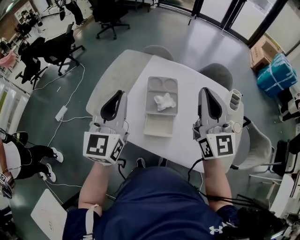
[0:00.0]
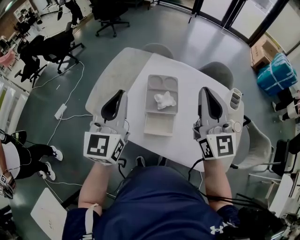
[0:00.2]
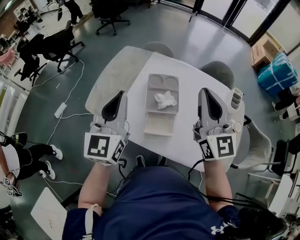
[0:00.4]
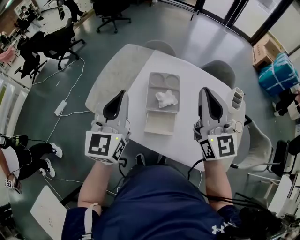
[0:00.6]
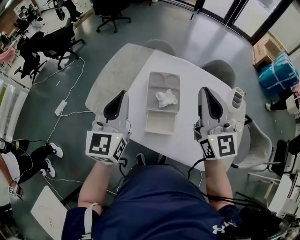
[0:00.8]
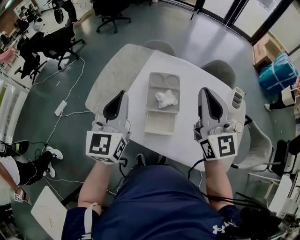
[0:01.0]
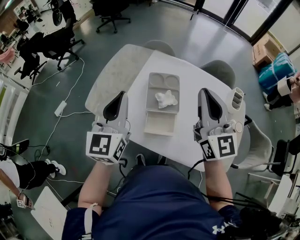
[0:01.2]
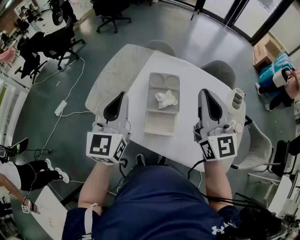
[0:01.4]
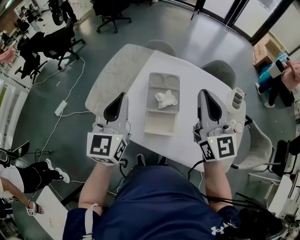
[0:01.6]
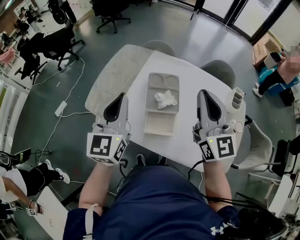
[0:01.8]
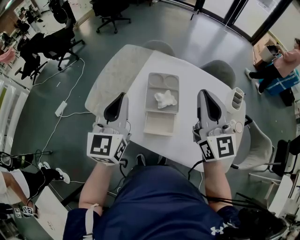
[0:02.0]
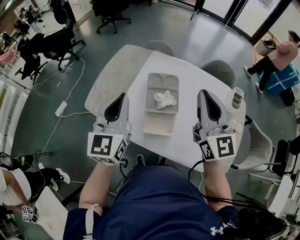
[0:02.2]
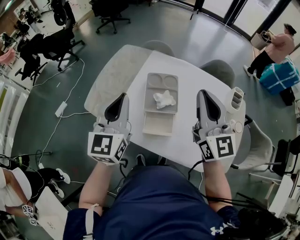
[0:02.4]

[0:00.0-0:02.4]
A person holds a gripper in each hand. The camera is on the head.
0.0 to 2.4 s: The grippers stay close to where they were, moving slightly.

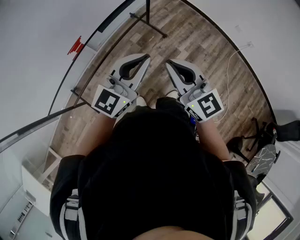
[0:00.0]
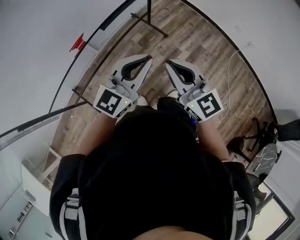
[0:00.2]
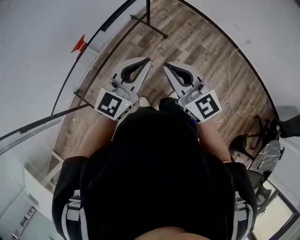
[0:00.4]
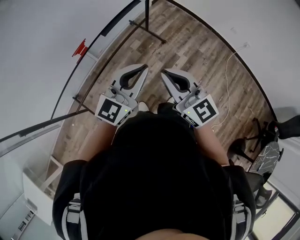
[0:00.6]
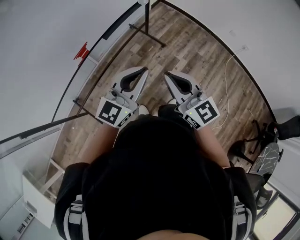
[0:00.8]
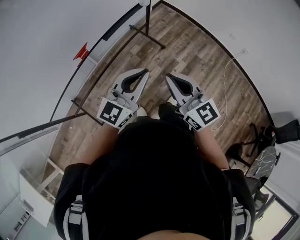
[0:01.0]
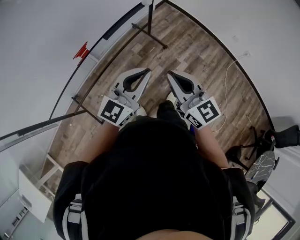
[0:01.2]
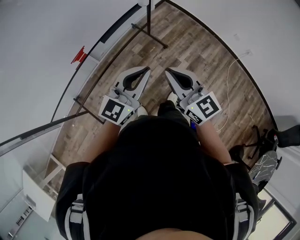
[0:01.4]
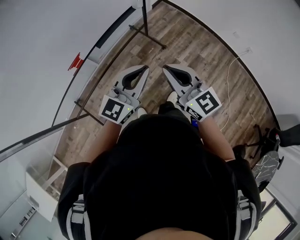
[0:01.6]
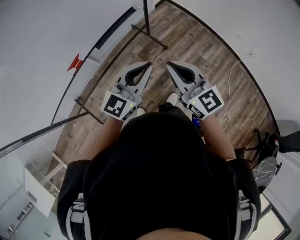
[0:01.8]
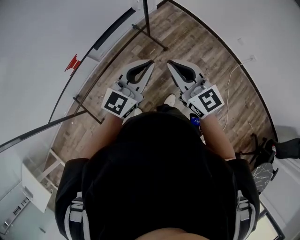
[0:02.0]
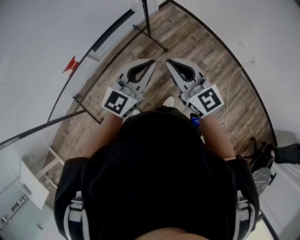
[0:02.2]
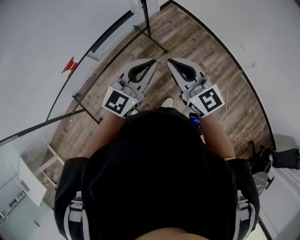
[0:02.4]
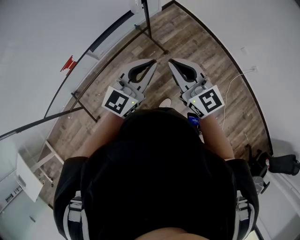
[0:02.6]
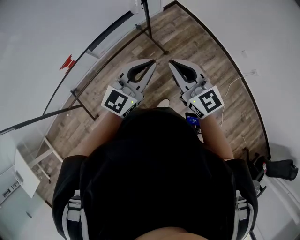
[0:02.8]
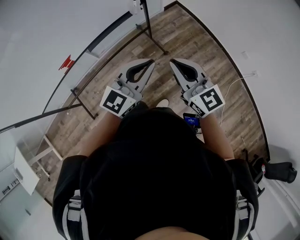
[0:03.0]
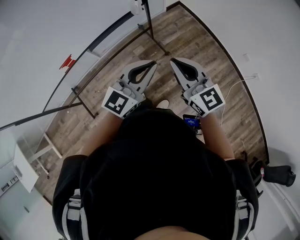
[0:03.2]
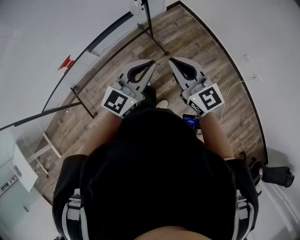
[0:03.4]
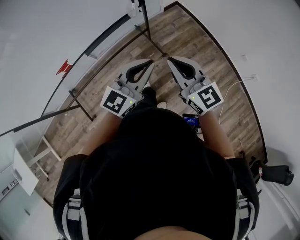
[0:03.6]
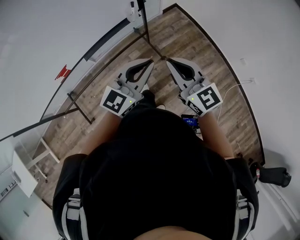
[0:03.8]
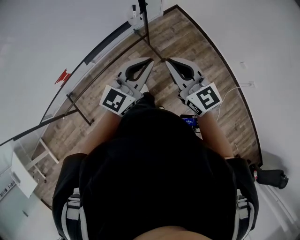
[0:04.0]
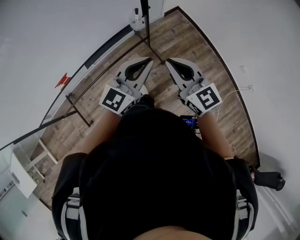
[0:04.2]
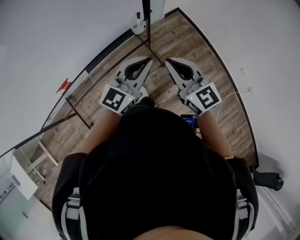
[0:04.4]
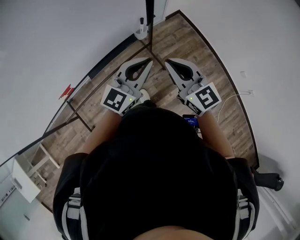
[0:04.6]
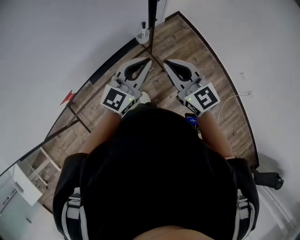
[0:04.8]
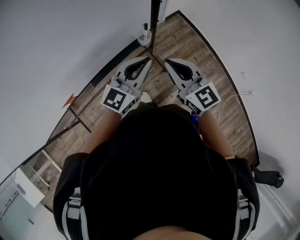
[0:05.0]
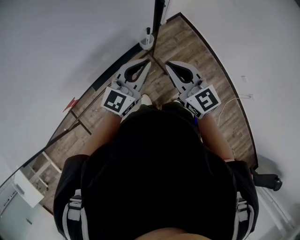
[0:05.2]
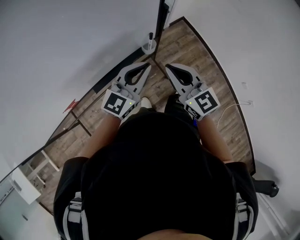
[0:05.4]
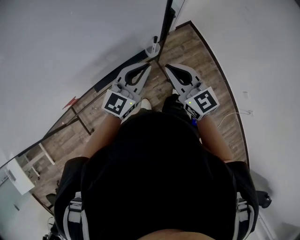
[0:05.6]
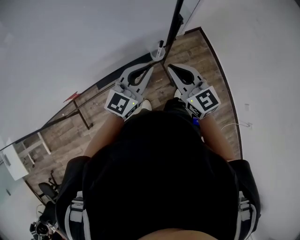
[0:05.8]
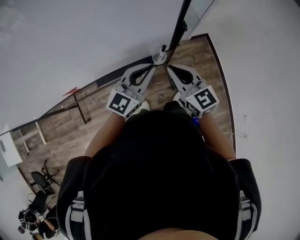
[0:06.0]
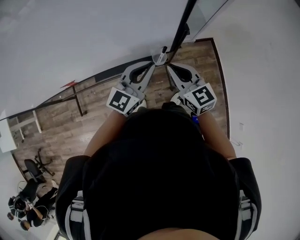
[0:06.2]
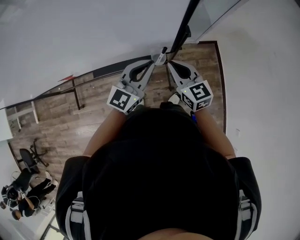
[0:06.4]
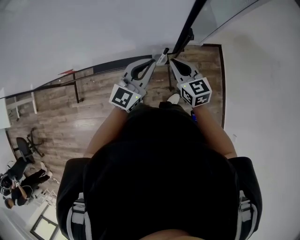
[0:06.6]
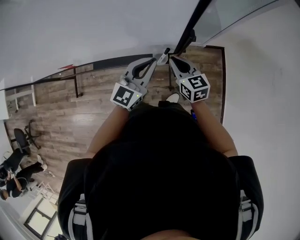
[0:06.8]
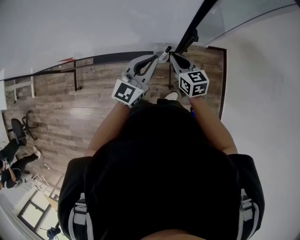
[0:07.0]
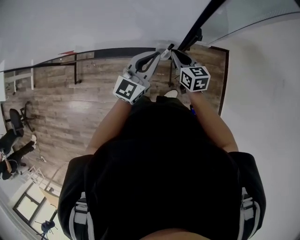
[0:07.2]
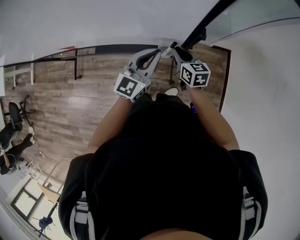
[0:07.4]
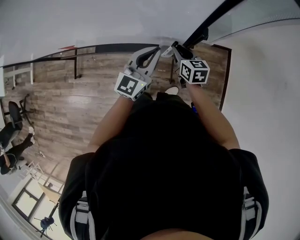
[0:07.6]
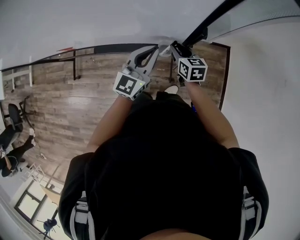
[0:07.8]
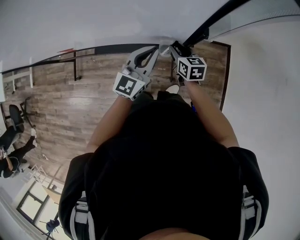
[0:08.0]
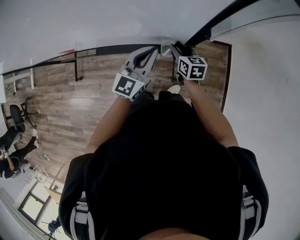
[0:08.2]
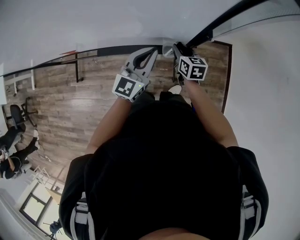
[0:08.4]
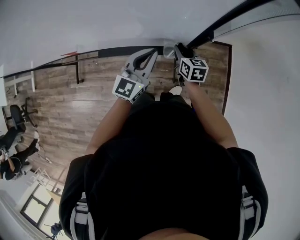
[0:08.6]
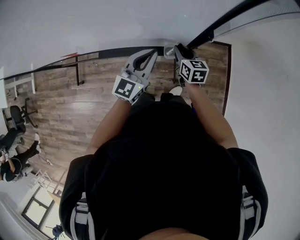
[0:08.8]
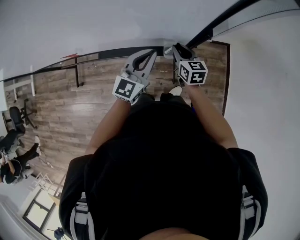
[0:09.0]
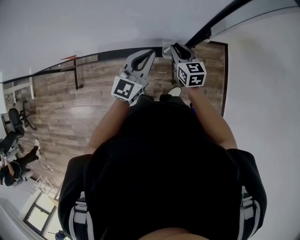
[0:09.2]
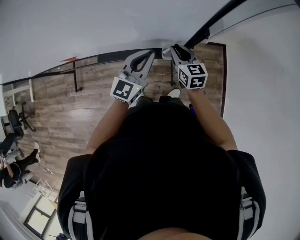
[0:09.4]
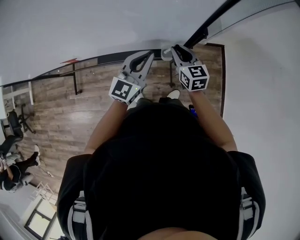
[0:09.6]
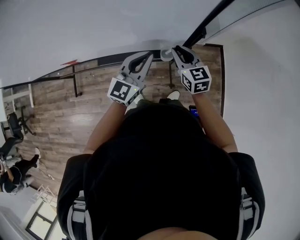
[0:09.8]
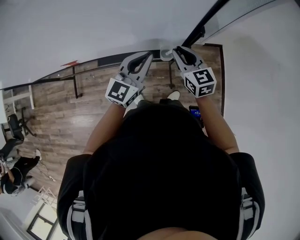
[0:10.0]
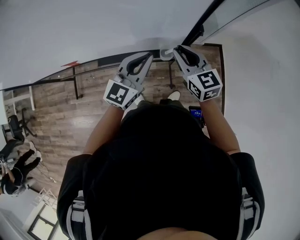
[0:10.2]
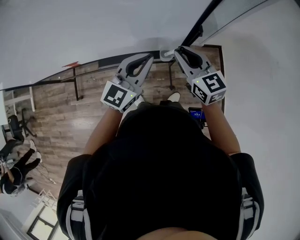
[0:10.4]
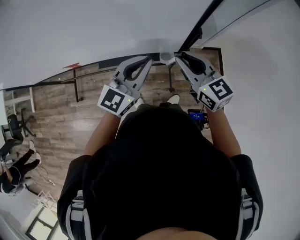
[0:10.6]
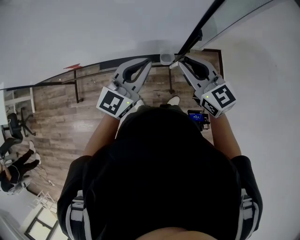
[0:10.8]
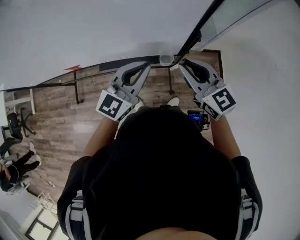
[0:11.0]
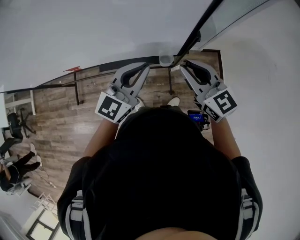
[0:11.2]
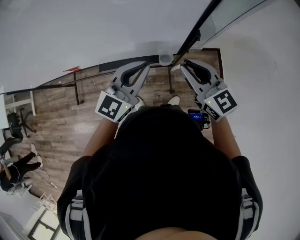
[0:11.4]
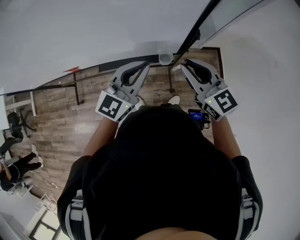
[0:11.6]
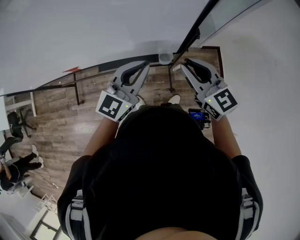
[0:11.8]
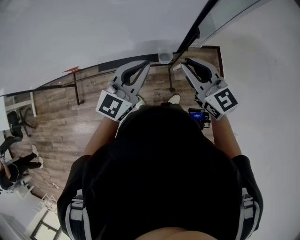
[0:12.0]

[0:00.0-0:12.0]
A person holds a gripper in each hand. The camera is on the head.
0.0 to 1.6 s: The left gripper moves some 5 cm backward and comes back. Meanwhile the right gripper shifts by approximately 5 cm.
1.6 to 3.0 s: Both grippers move to the right and forward, roughly 20 cm.
3.0 to 4.4 s: Both grippers move forward, roughly 20 cm.
4.4 to 6.0 s: Both grippers travel together forward, roughly 20 cm.
6.0 to 7.6 s: The left gripper goes roughly 10 cm downward and forward, and rotates roughly 30 degrees, while the right gripper shifts about 20 cm downward and forward, and swivels about 30 degrees.
7.6 to 9.0 s: There are only small adjustments of the grippers.
9.0 to 10.4 s: The right gripper travels upward by approximately 15 cm, and turns by roughly 20 degrees; the left gripper heads upward, covering about 10 cm.
10.4 to 12.0 s: The right gripper moves approximately 5 cm.

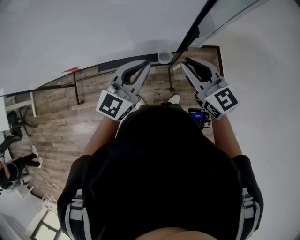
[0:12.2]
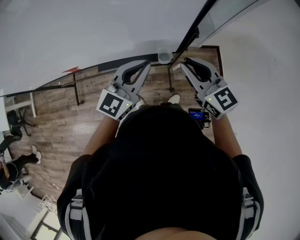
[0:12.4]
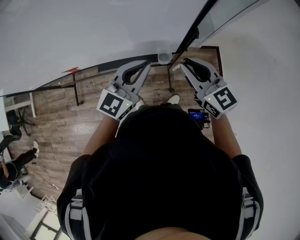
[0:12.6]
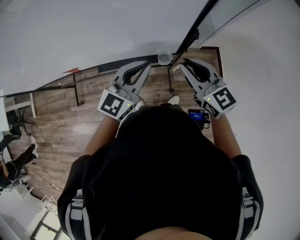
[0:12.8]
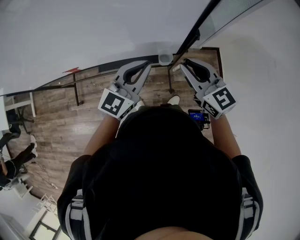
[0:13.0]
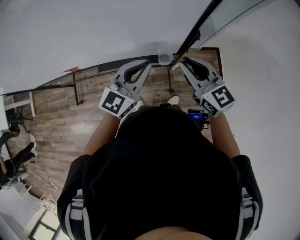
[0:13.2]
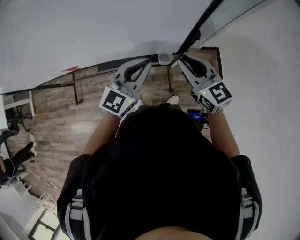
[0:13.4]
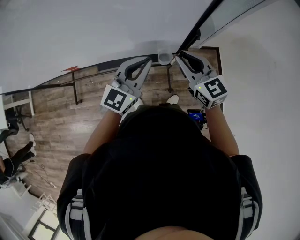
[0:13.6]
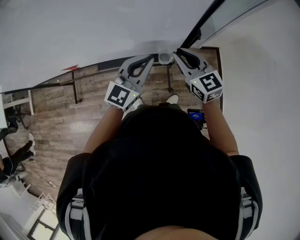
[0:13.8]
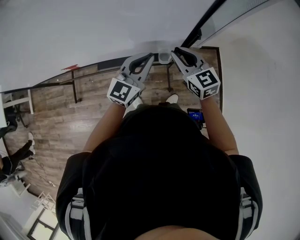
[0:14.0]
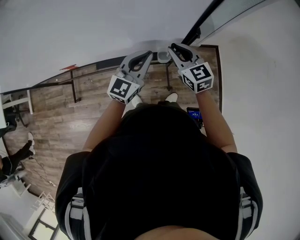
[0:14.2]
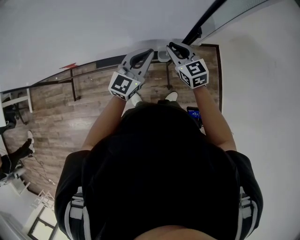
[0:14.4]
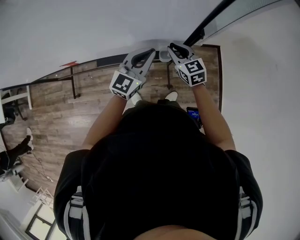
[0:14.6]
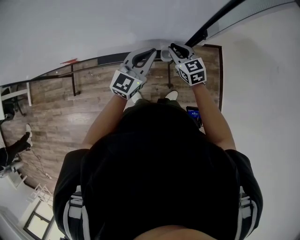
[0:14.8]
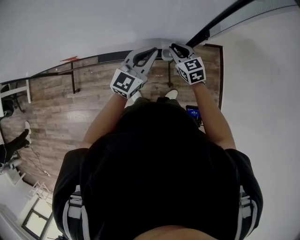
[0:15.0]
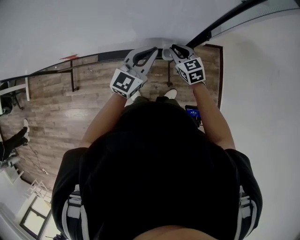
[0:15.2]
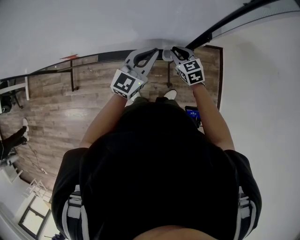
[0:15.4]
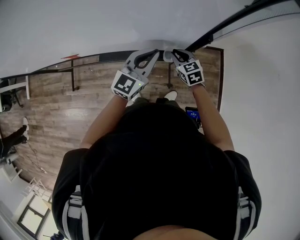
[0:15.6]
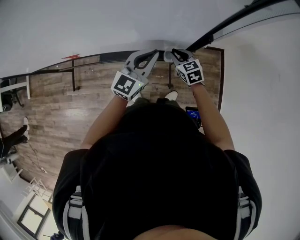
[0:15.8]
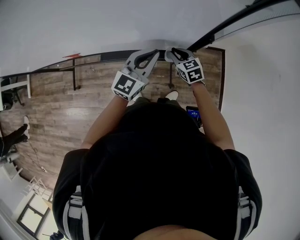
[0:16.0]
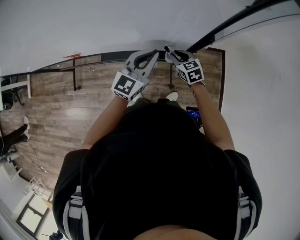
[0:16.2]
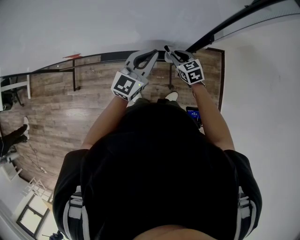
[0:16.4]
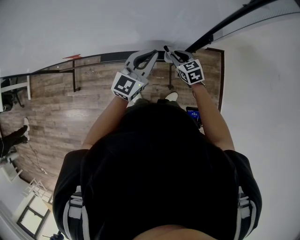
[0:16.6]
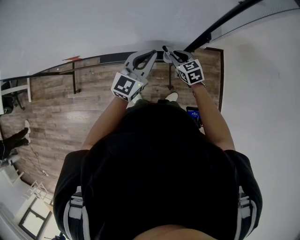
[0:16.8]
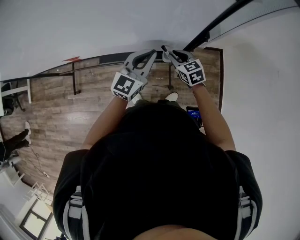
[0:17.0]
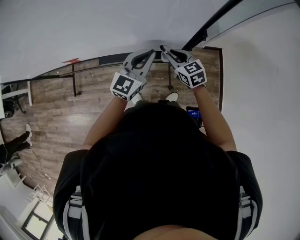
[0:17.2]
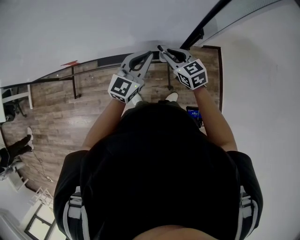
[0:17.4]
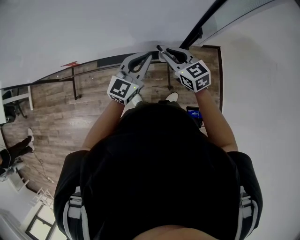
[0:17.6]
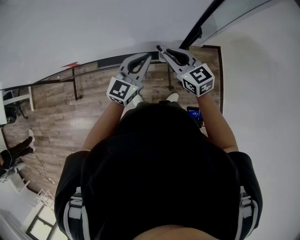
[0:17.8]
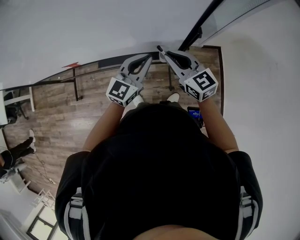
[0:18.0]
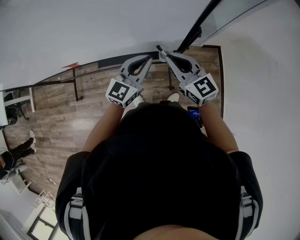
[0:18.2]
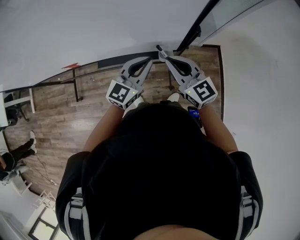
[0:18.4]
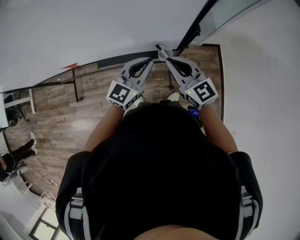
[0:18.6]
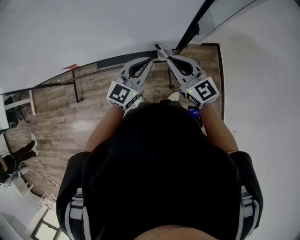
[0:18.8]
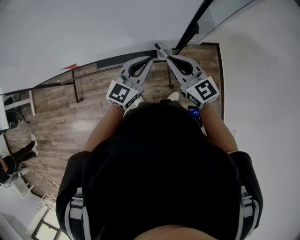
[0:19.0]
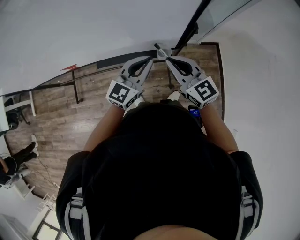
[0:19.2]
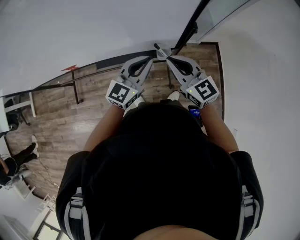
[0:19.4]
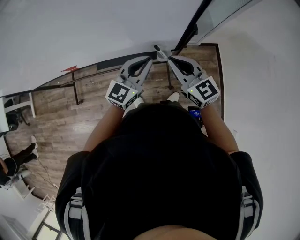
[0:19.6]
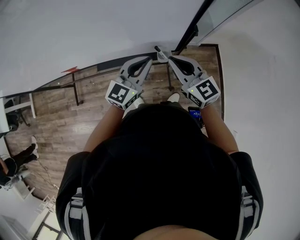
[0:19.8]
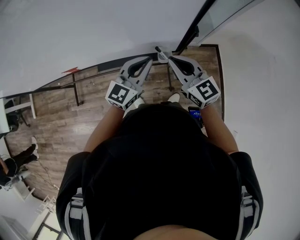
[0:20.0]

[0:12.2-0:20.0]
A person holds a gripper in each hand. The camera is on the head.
12.2 to 13.8 s: The right gripper heads downward, covering about 5 cm.
13.8 to 15.4 s: The right gripper shifts roughly 15 cm downward, and changes its angle by about 20 degrees; the left gripper shifts by approximately 5 cm.
15.4 to 16.8 s: The grippers stay close to where they were, moving slightly.
16.8 to 18.4 s: The right gripper shifts roughly 20 cm upward, and points its fingers approximately 30 degrees further upward.
18.4 to 20.0 s: The grippers move only a little.

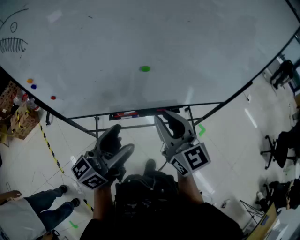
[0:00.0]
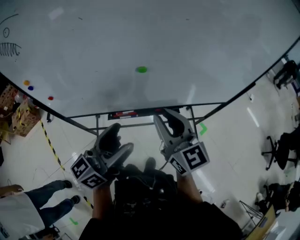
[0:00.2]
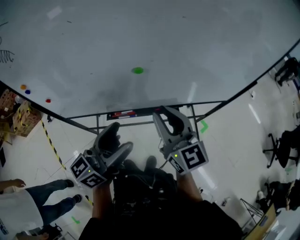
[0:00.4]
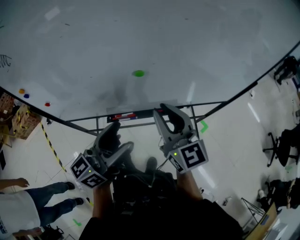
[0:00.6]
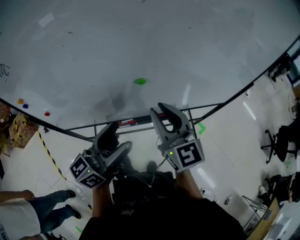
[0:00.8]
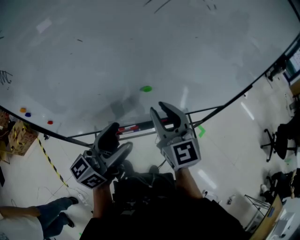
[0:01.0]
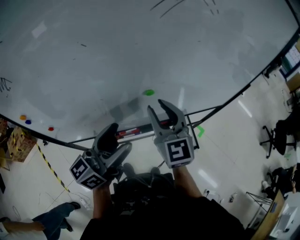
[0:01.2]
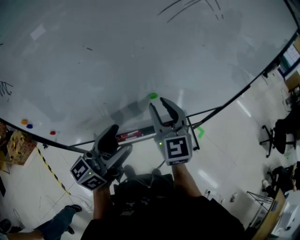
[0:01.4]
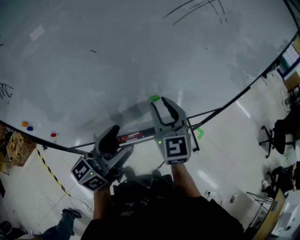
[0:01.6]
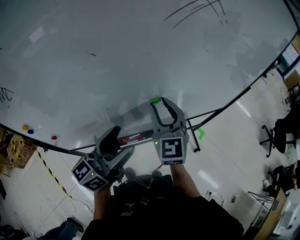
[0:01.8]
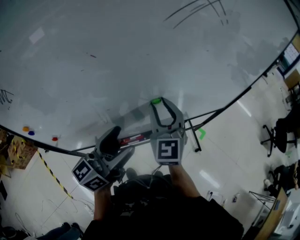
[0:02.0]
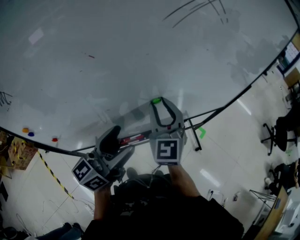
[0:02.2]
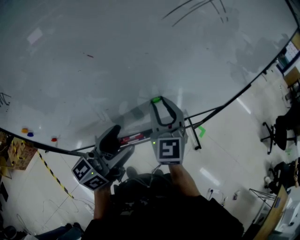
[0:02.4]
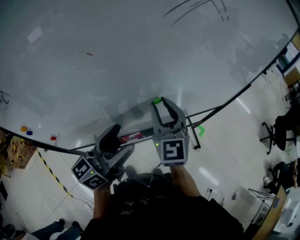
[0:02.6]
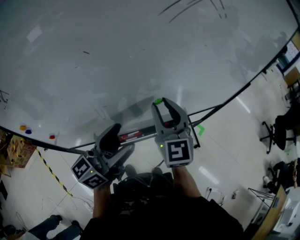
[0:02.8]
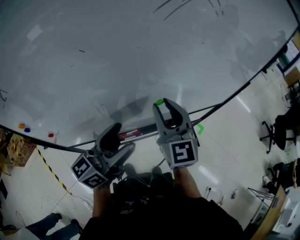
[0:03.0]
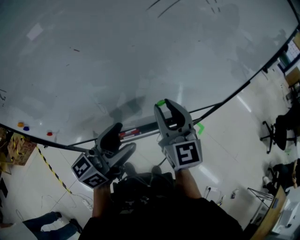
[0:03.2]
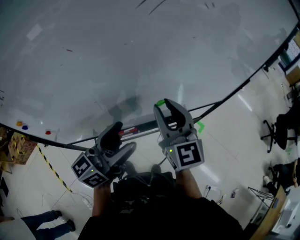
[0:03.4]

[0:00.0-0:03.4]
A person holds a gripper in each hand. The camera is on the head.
0.0 to 1.6 s: The left gripper shifts roughly 15 cm forward and to the left, while the right gripper goes some 15 cm forward, and changes its angle by roughly 30 degrees.
1.6 to 3.4 s: The right gripper moves about 5 cm.
